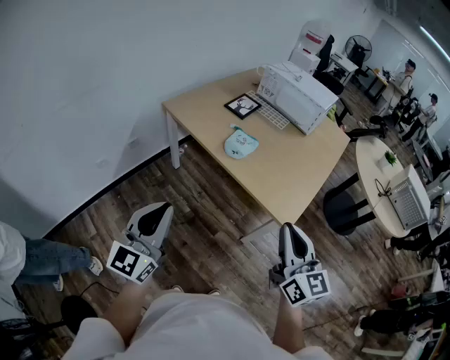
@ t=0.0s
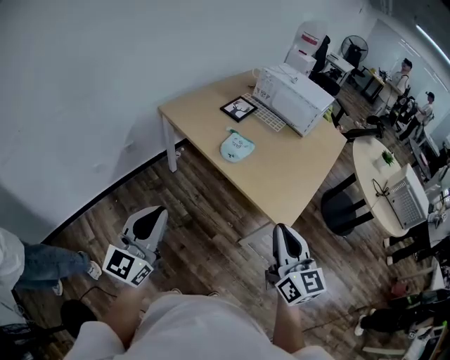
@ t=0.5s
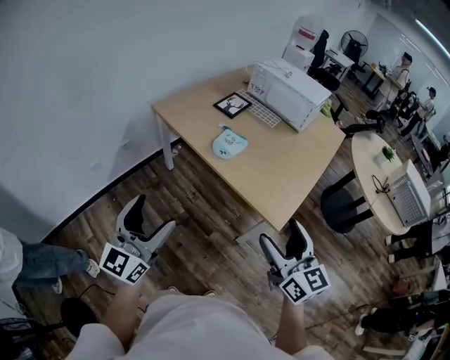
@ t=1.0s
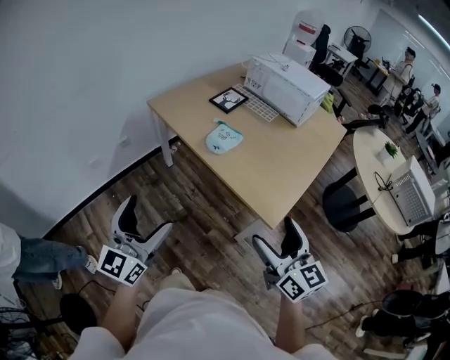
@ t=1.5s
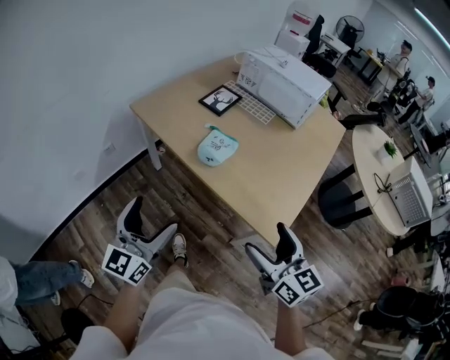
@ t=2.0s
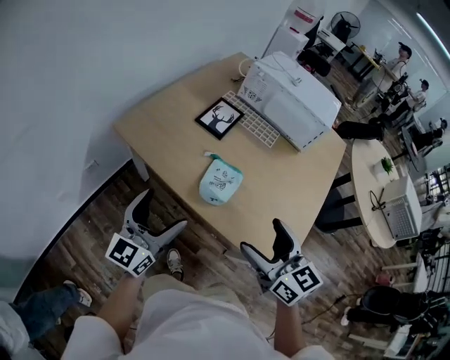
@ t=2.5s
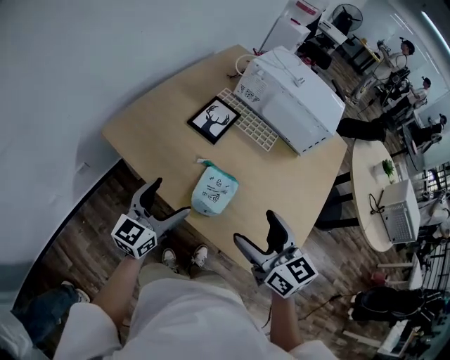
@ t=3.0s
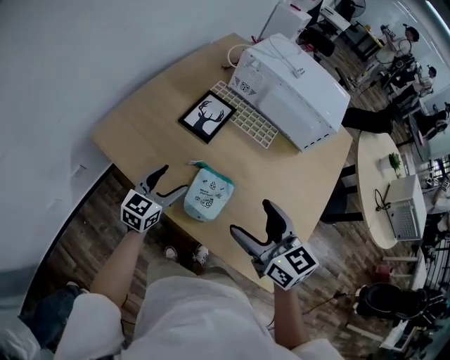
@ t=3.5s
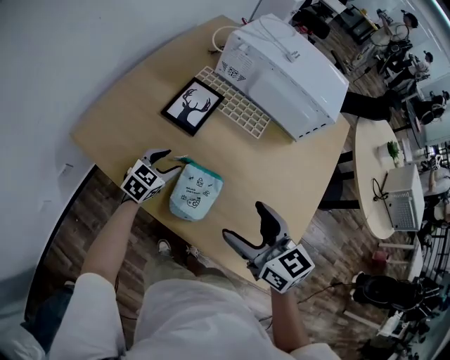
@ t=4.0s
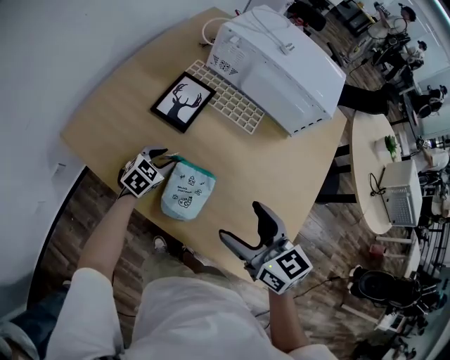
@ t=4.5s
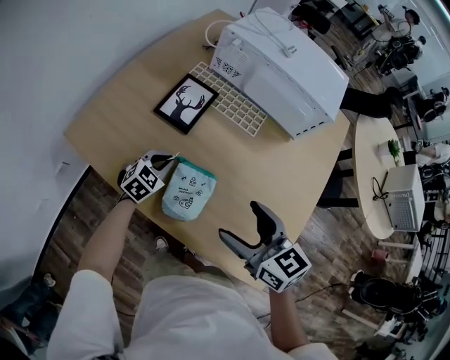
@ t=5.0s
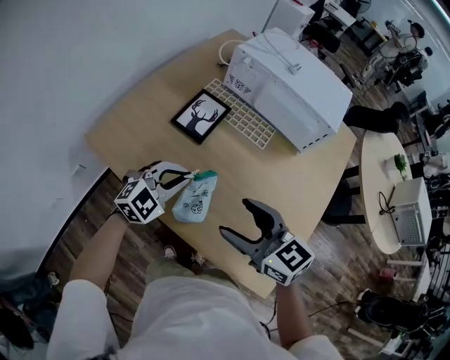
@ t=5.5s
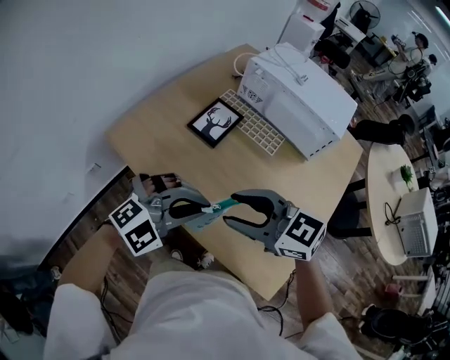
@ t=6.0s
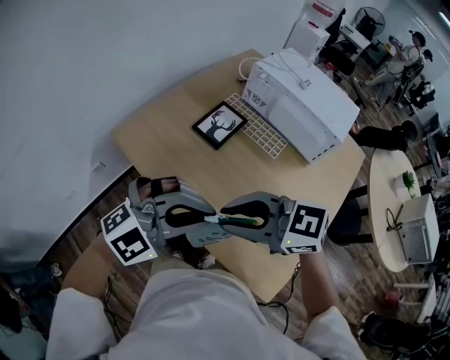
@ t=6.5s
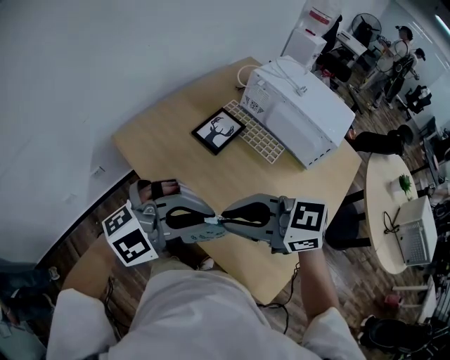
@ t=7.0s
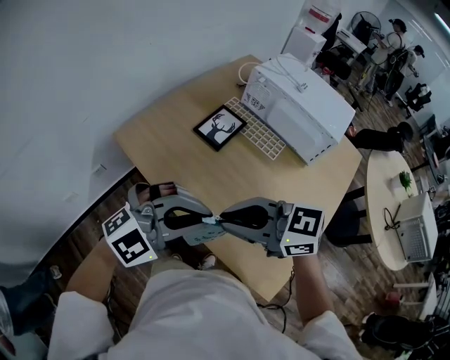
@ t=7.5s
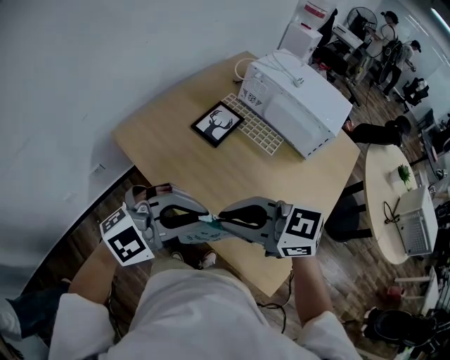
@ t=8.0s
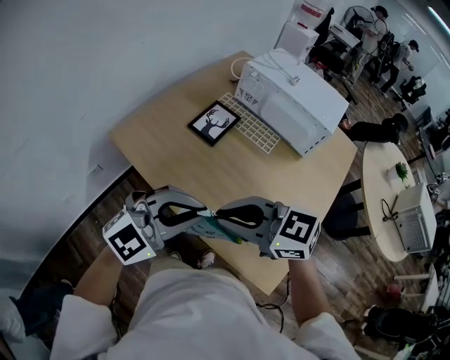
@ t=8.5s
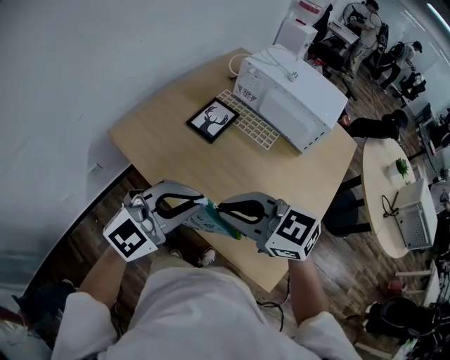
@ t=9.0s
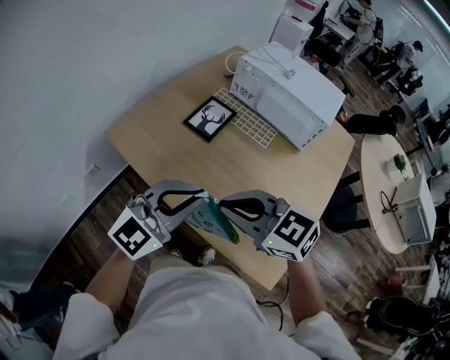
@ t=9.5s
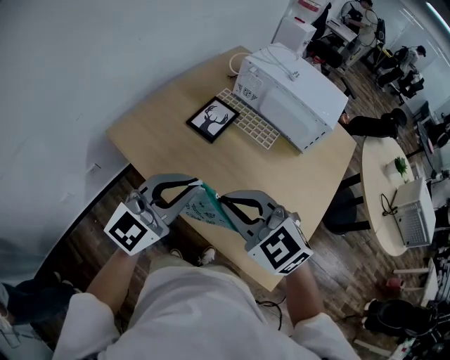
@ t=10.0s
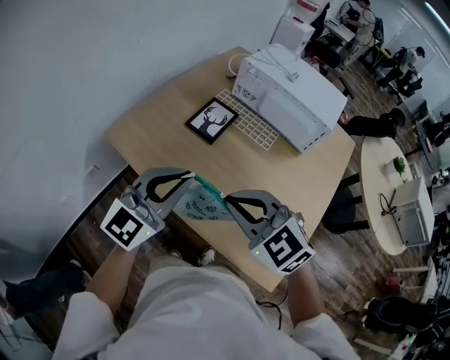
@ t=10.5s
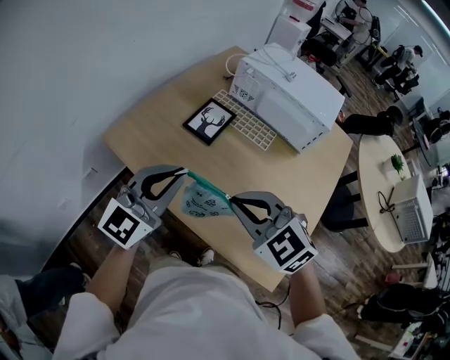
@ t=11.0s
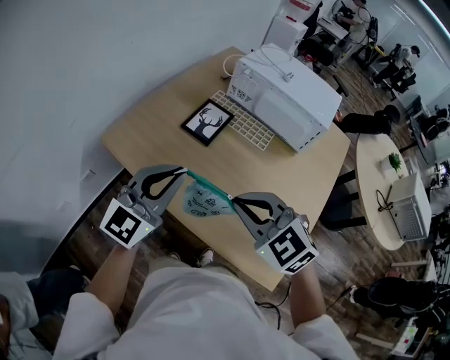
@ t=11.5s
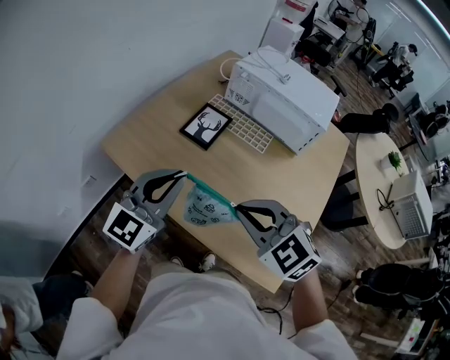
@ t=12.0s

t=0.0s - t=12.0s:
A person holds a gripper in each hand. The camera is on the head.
t=0.0s - t=2.0s: The left gripper heads forward, to the right and downward, covering about 15 cm, and opens. The right gripper moves forward and downward, about 15 cm, and opens up.
t=2.0s - t=4.0s: The left gripper shifts approximately 60 cm forward and downward, tilts its fingers about 40 degrees downward, and closes, while the right gripper heads forward, covering some 35 cm.
t=4.0s - t=6.0s: The left gripper shifts about 25 cm upward, rotates around the line of its fingers by approximately 50 degrees, clockwise from behind, and closes; the right gripper moves upward, roughly 5 cm, rotates approximately 40 degrees, and closes.
t=6.0s - t=8.0s: The right gripper changes place by roughly 5 cm, and closes its fingers. The left gripper ends up some 10 cm from where it was.
t=8.0s - t=10.0s: The left gripper shifts by roughly 5 cm, and changes its angle by some 30 degrees. The right gripper changes its angle by approximately 40 degrees.
t=10.0s - t=12.0s: The left gripper changes place by approximately 5 cm.

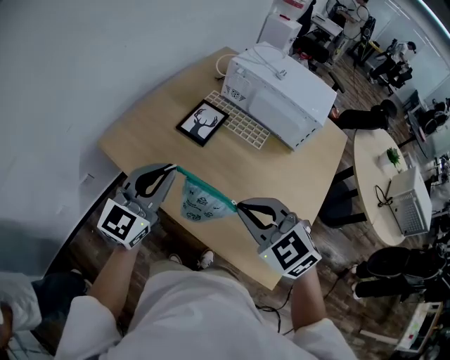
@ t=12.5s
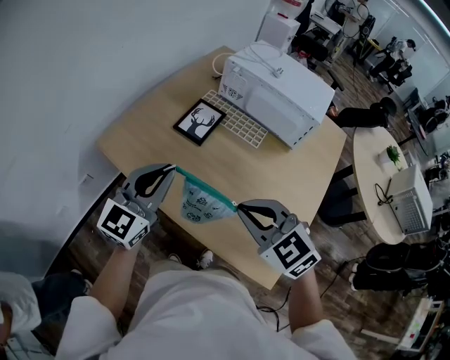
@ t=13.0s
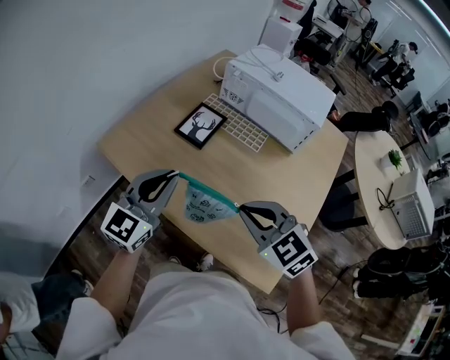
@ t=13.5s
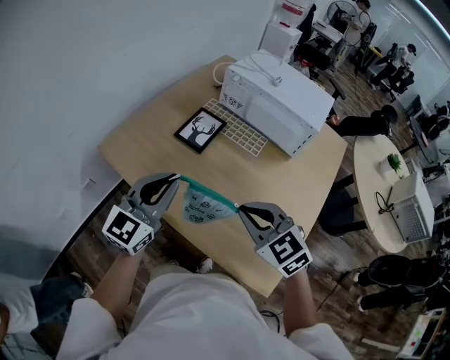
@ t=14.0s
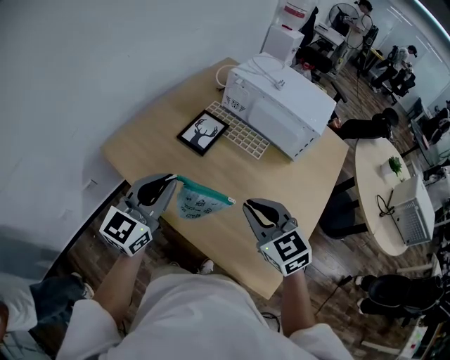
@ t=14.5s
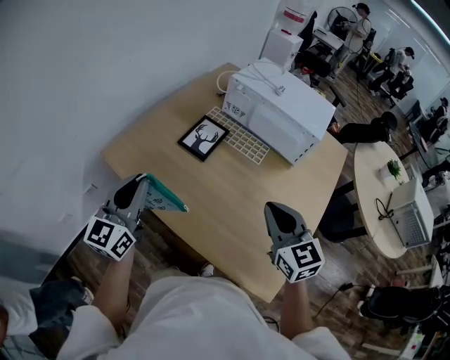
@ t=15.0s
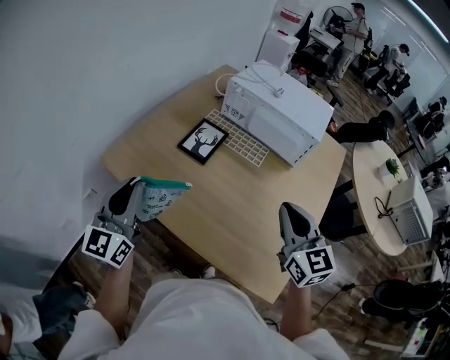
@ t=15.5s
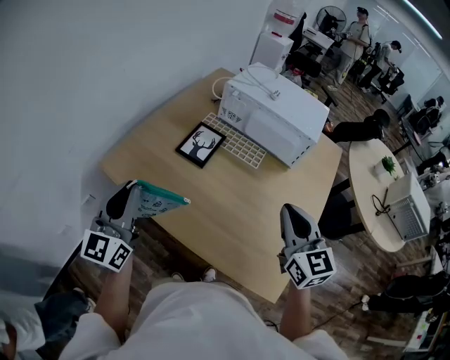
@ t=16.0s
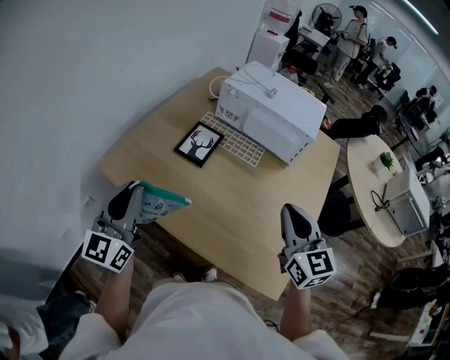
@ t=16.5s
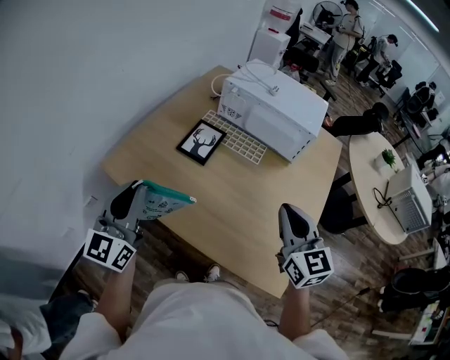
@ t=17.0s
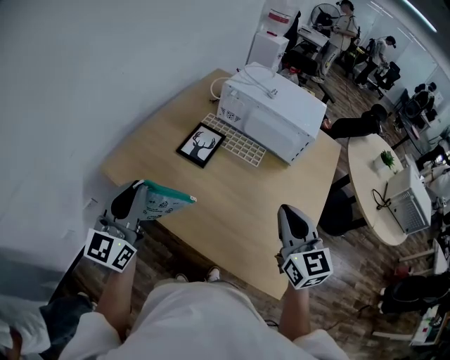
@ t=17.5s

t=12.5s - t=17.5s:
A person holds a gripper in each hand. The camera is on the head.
t=12.5s - t=15.0s: The left gripper moves to the left, some 5 cm. Meanwhile the right gripper goes roughly 10 cm to the right, and swivels some 30 degrees.
t=15.0s - t=17.5s: The grippers stay close to where they were, moving slightly.

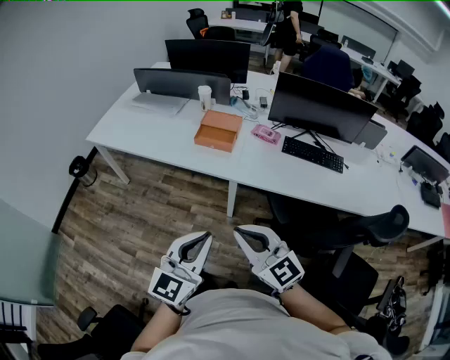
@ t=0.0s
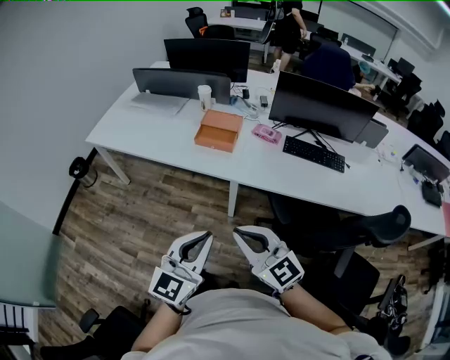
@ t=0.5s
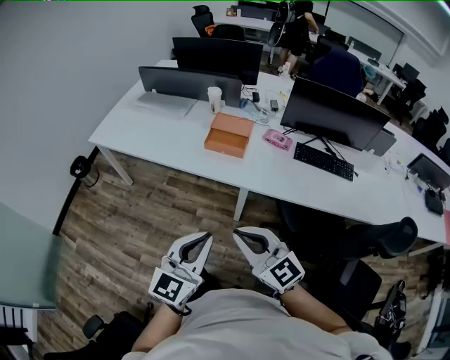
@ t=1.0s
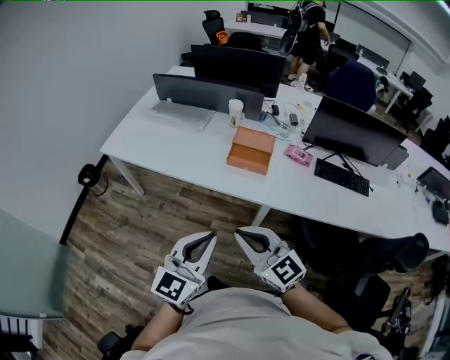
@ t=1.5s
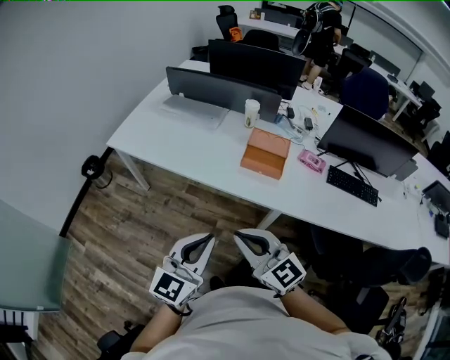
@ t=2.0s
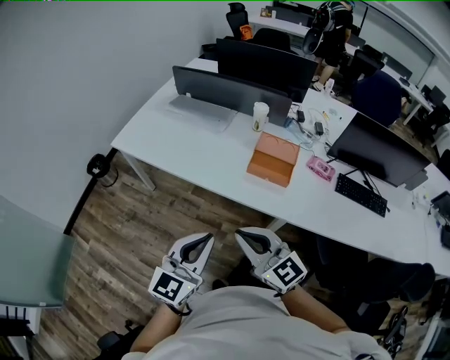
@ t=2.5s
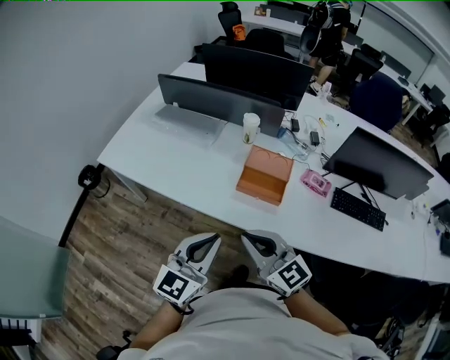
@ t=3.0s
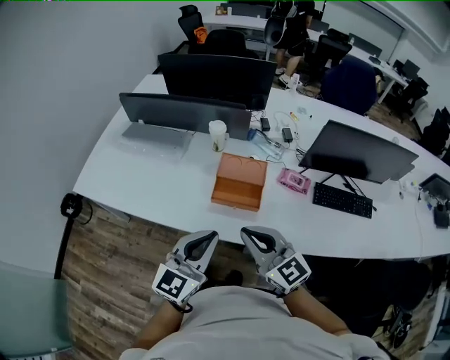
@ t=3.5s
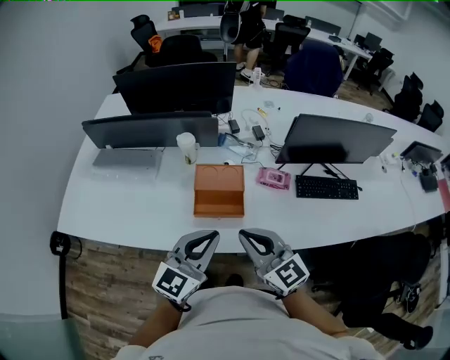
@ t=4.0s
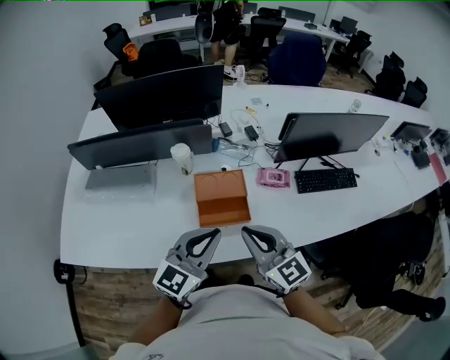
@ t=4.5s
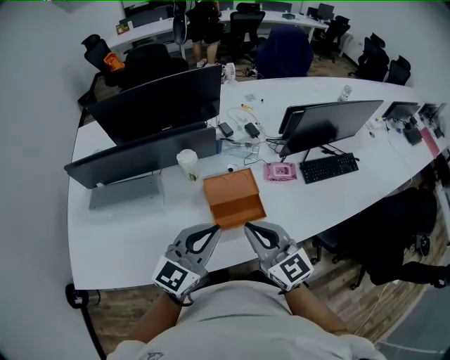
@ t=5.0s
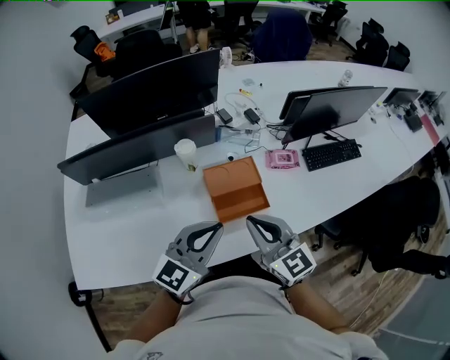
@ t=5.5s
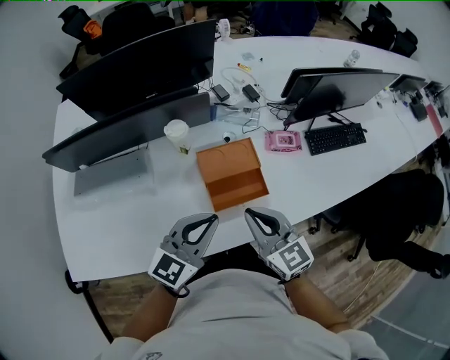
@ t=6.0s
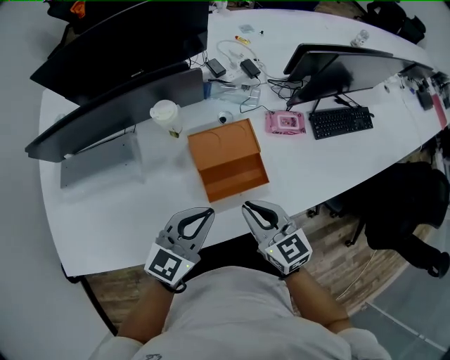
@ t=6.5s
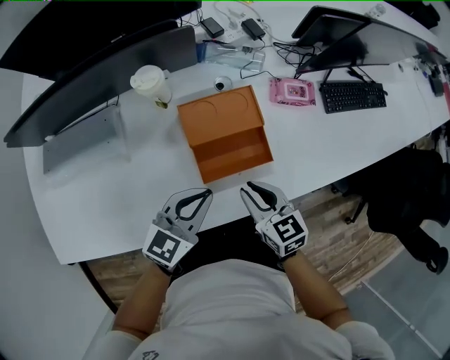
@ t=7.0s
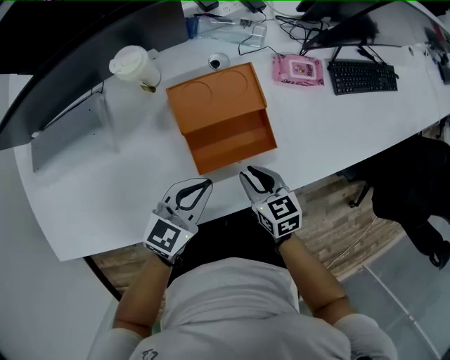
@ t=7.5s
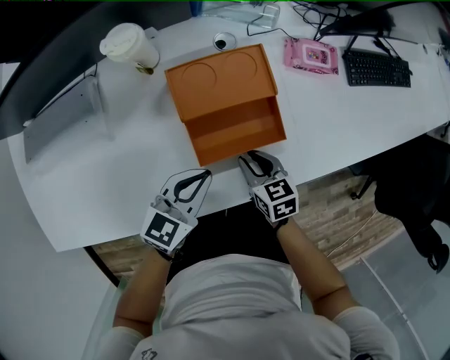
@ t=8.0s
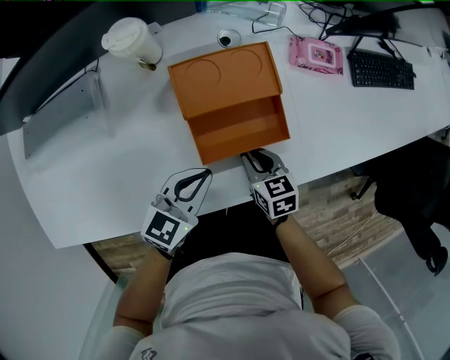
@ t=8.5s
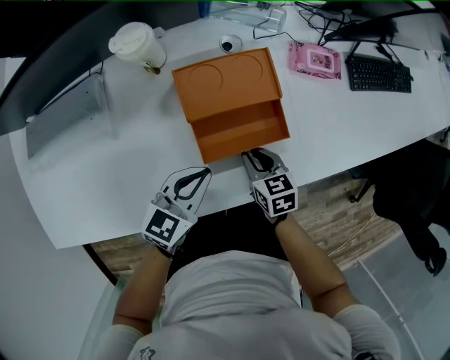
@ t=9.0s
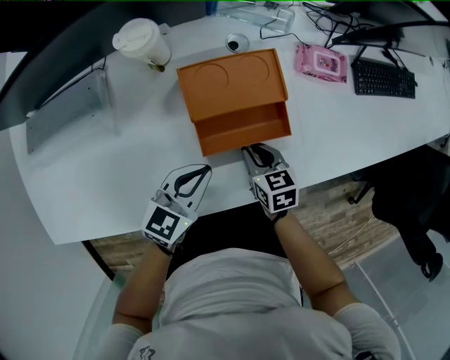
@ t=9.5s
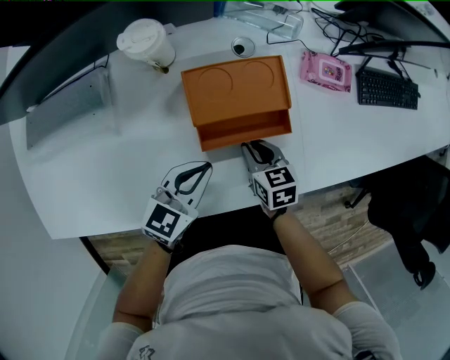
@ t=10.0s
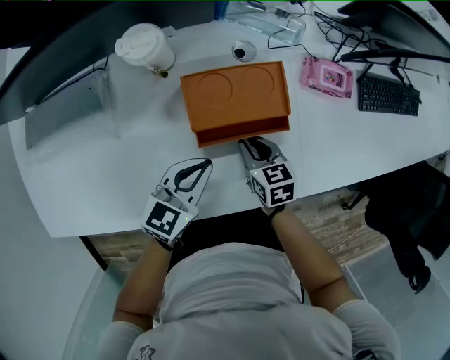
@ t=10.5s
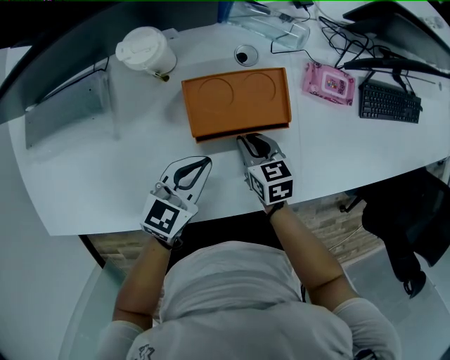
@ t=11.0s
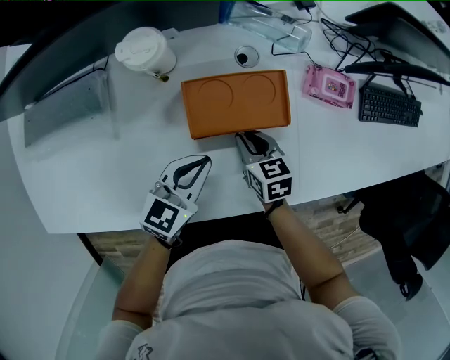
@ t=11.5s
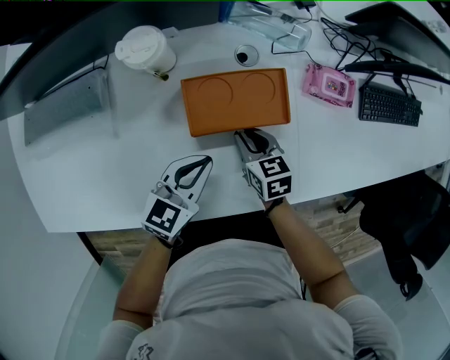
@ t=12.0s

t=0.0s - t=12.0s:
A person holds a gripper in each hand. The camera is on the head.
t=0.0s - t=2.0s: The grippers both shift to the left and forward by approximately 30 cm.
t=2.0s - t=4.0s: The left gripper shifts by about 35 cm, and rotates roughly 20 degrees; the right gripper ends up about 35 cm from where it was, and turns by some 20 degrees.
t=4.0s - t=6.0s: The grippers both shift to the left, forward and downward by roughly 20 cm. The right gripper changes its angle by some 30 degrees. The left gripper swivels about 20 degrees.
t=6.0s - t=8.0s: Both grippers move downward, about 30 cm. The left gripper changes its angle by roughly 20 degrees; the right gripper tilts its fingers about 30 degrees downward, and opens up.
t=8.0s - t=10.0s: The right gripper shifts some 5 cm forward.
t=10.0s - t=12.0s: The right gripper heads forward, covering roughly 5 cm.
